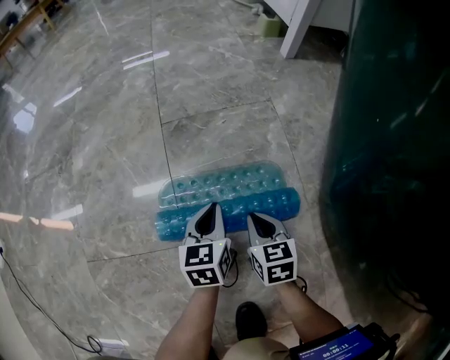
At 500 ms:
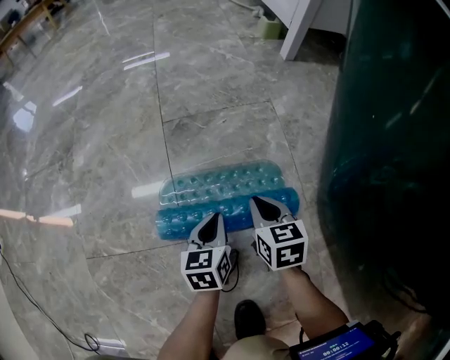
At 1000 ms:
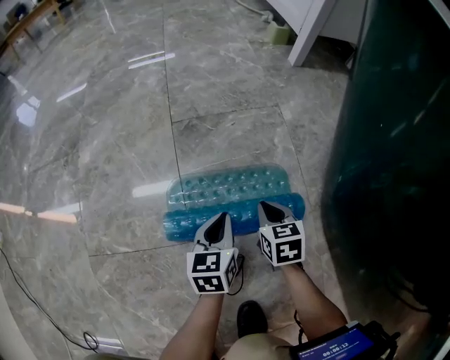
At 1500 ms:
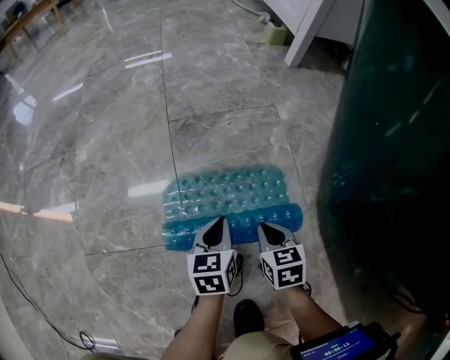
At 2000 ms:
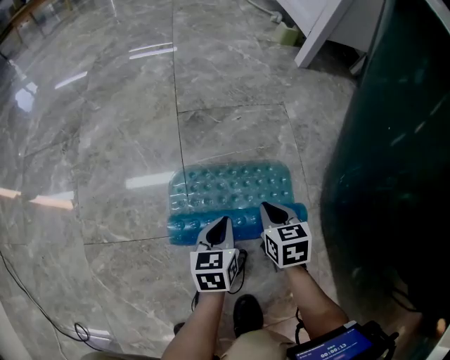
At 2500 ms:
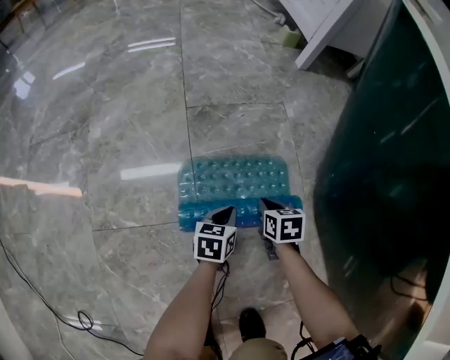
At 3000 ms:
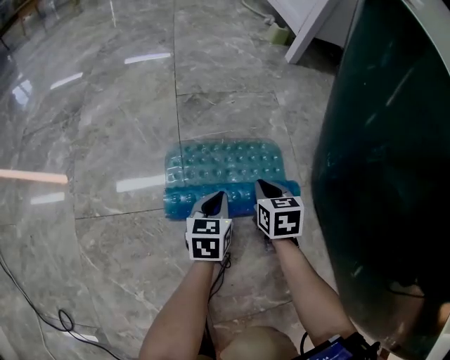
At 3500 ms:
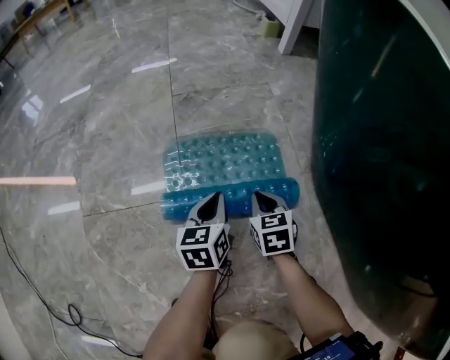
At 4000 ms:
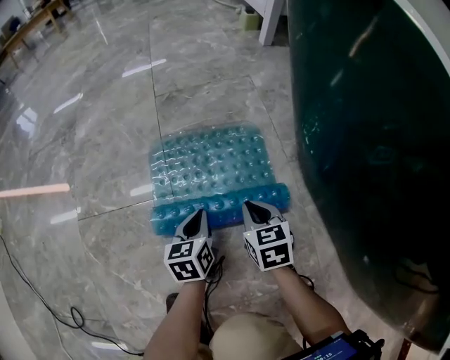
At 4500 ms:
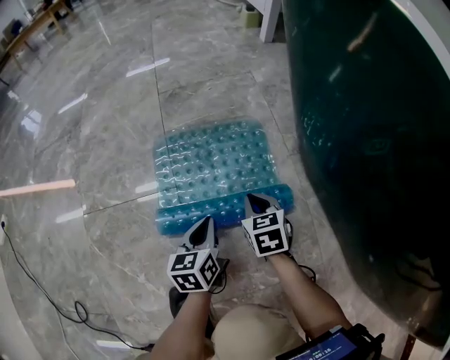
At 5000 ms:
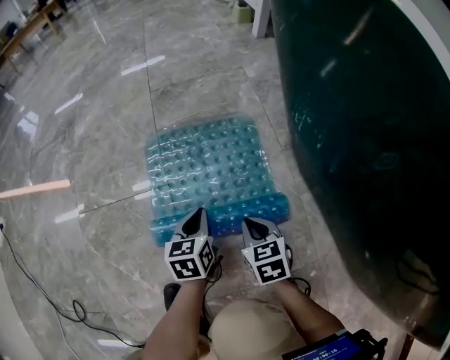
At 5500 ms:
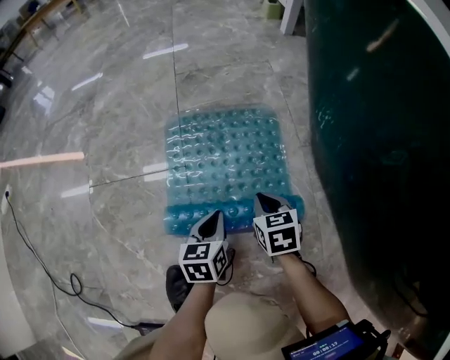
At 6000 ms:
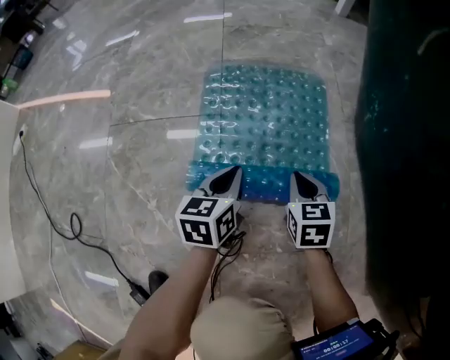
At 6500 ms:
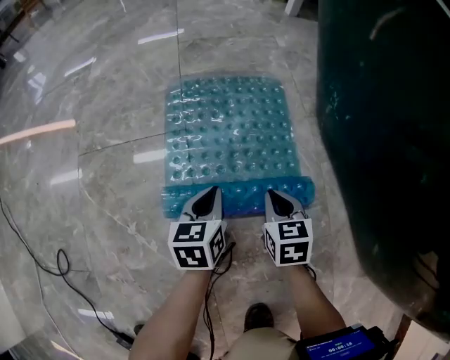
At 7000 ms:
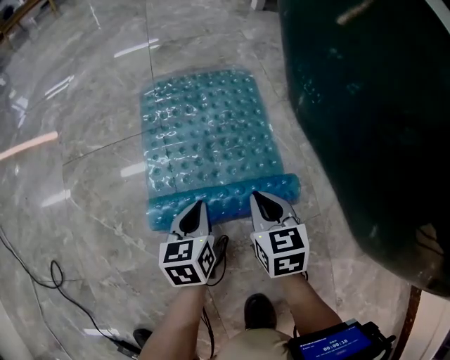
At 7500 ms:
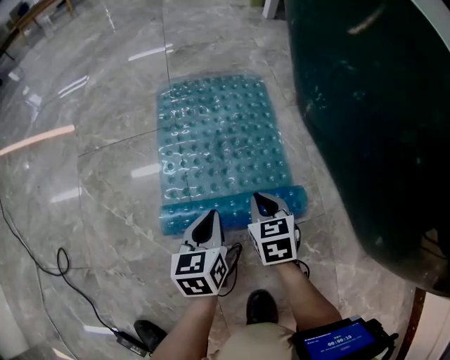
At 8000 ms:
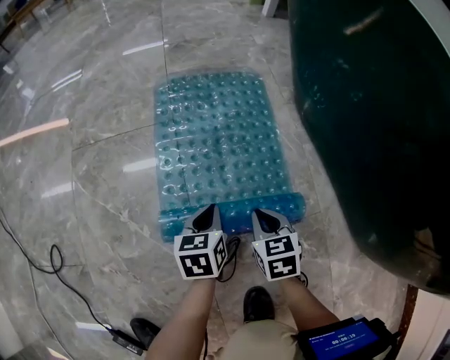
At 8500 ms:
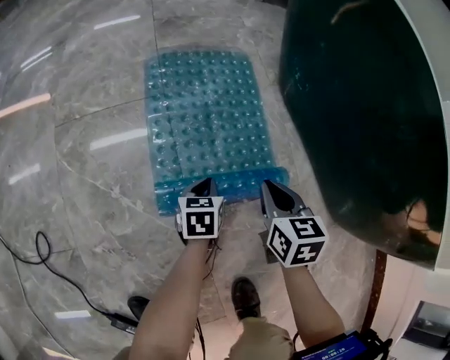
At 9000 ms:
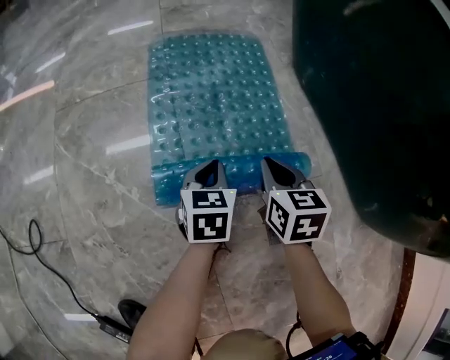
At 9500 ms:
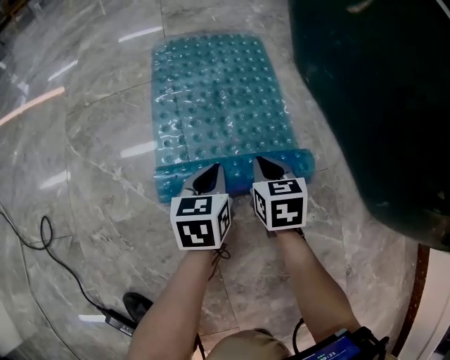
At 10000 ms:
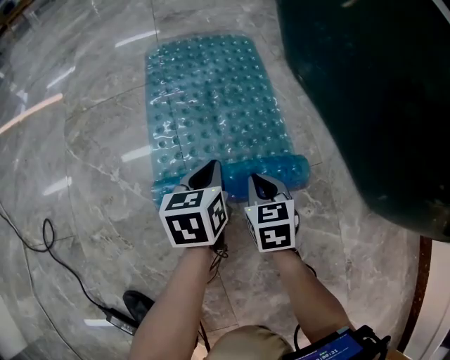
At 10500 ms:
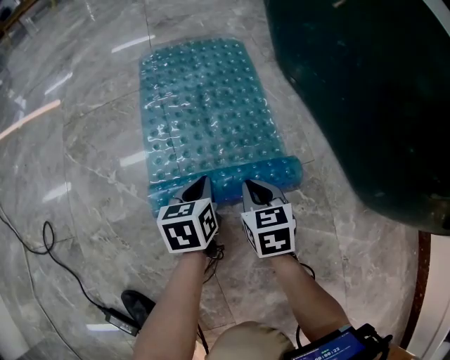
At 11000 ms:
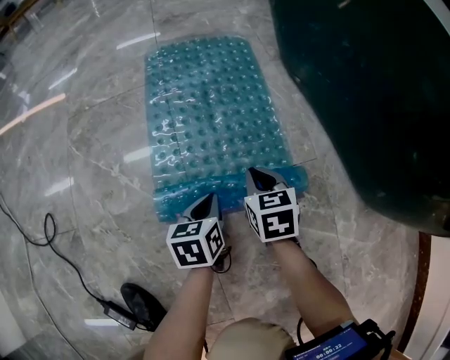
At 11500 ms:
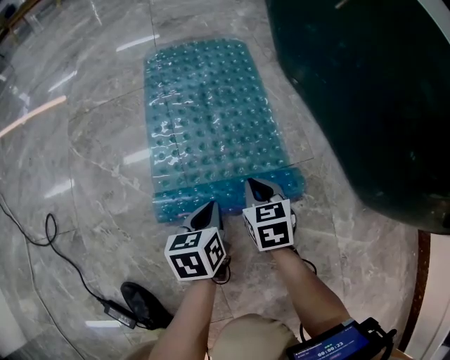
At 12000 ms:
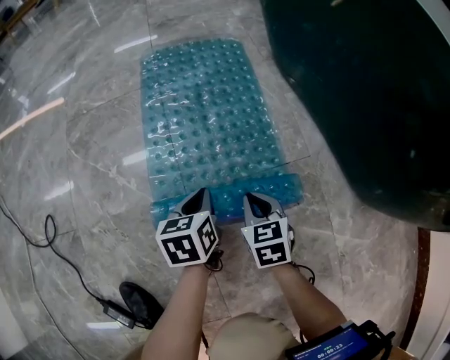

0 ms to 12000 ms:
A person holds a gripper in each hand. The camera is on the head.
0 ms to 2000 ms: The left gripper is displaced backward by roughly 5 cm.
2000 ms to 4000 ms: Both grippers move backward, roughly 15 cm.
4000 ms to 6000 ms: The grippers both shift backward by some 10 cm.
6000 ms to 8000 ms: Both grippers travel together backward, roughly 15 cm.
8000 ms to 10000 ms: The left gripper moves about 5 cm, while the right gripper shifts approximately 5 cm backward, and travels upward and back again, roughly 10 cm each way.
10000 ms to 12000 ms: The grippers both shift backward by roughly 5 cm.

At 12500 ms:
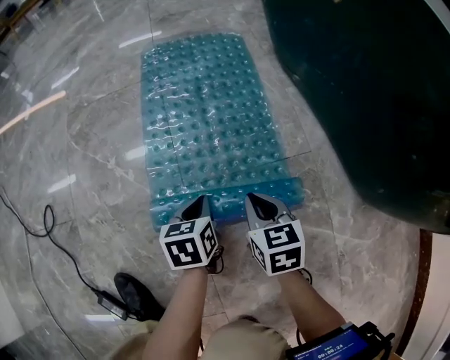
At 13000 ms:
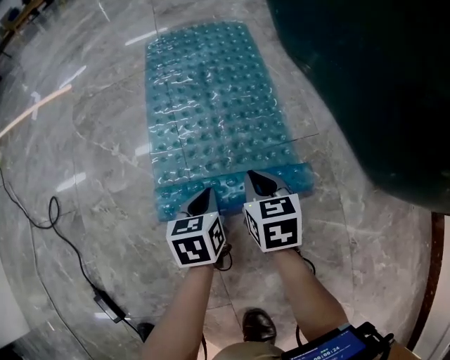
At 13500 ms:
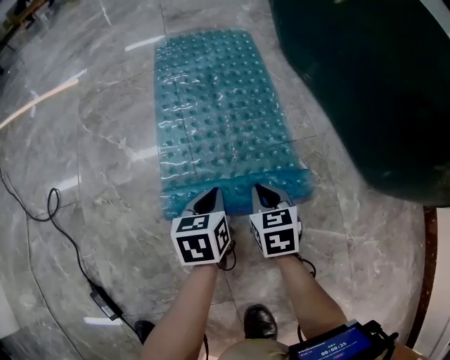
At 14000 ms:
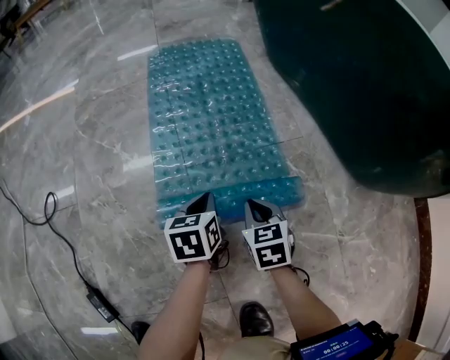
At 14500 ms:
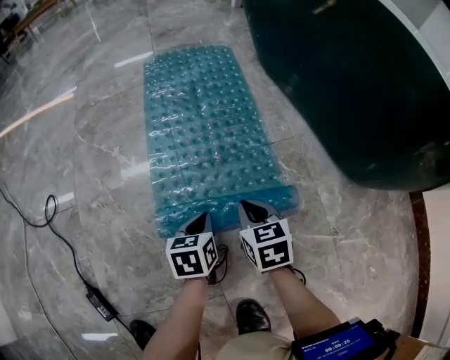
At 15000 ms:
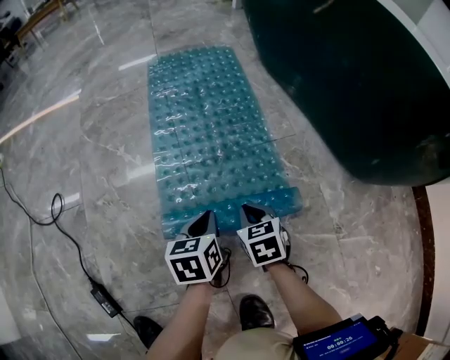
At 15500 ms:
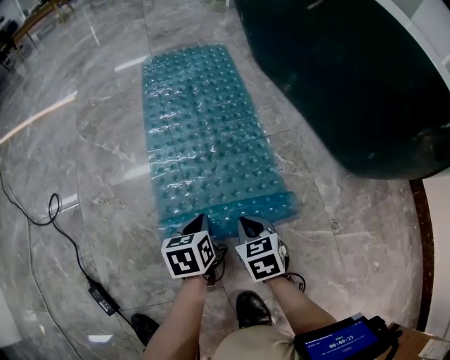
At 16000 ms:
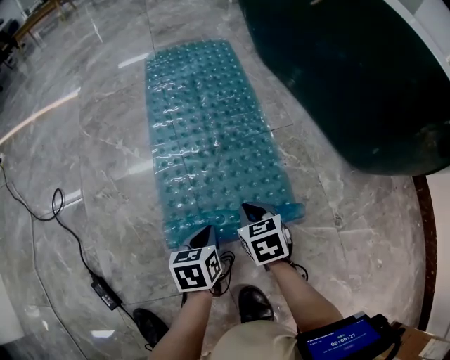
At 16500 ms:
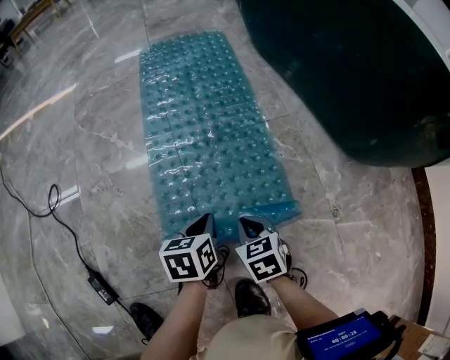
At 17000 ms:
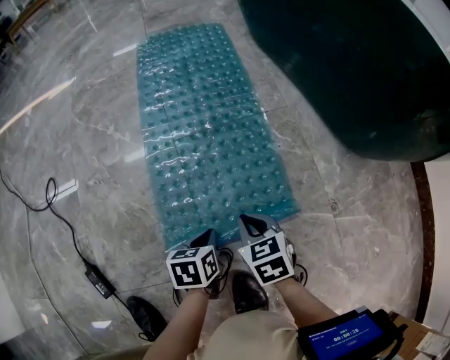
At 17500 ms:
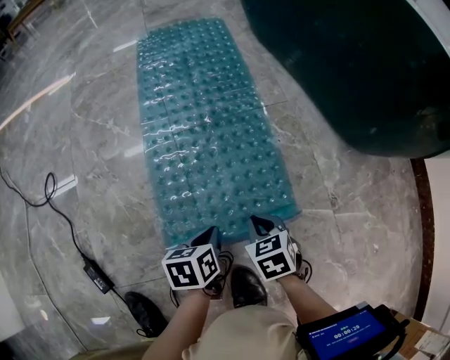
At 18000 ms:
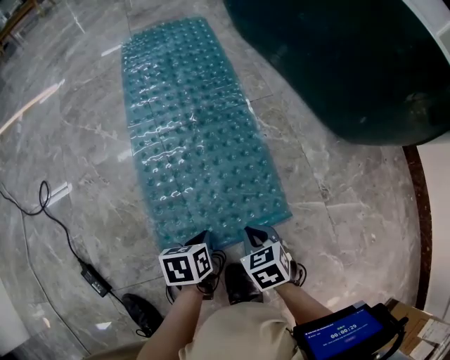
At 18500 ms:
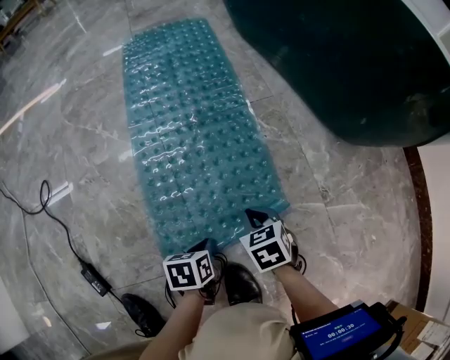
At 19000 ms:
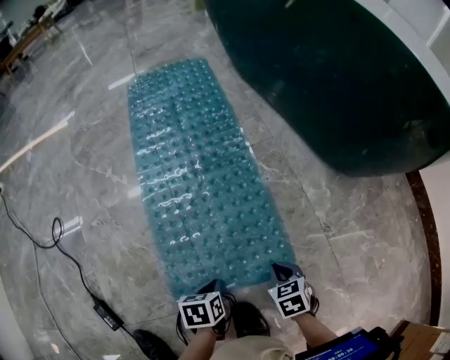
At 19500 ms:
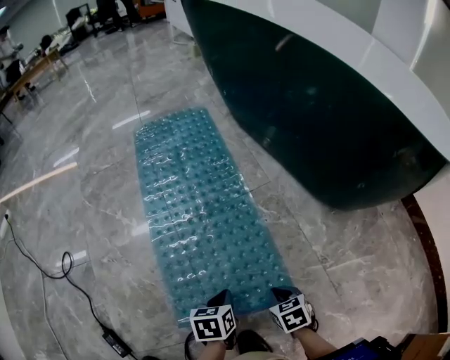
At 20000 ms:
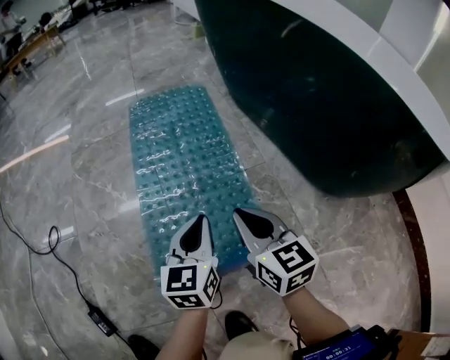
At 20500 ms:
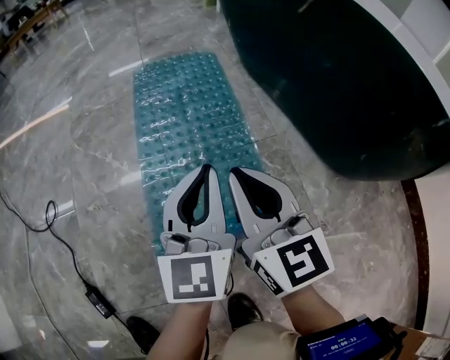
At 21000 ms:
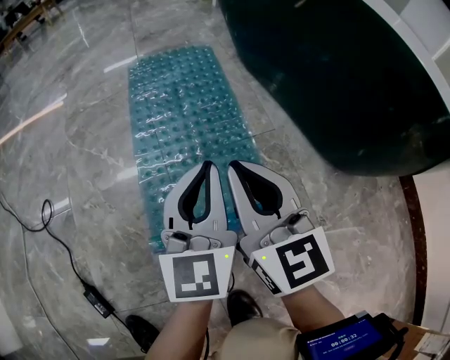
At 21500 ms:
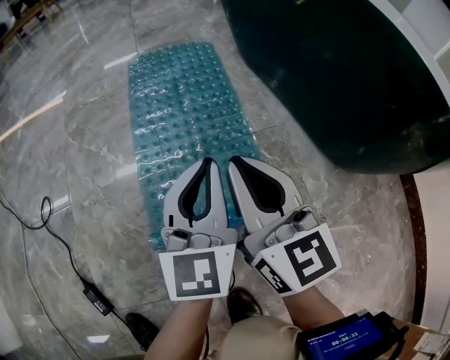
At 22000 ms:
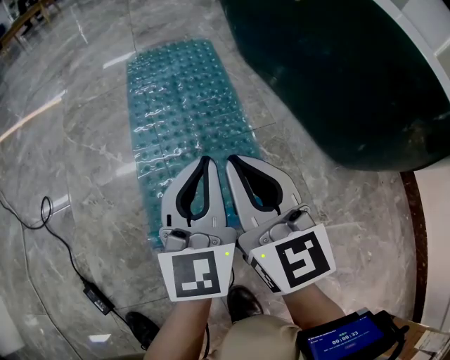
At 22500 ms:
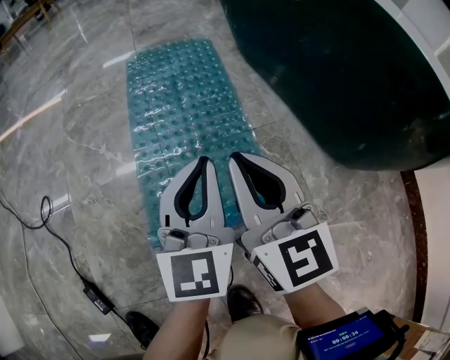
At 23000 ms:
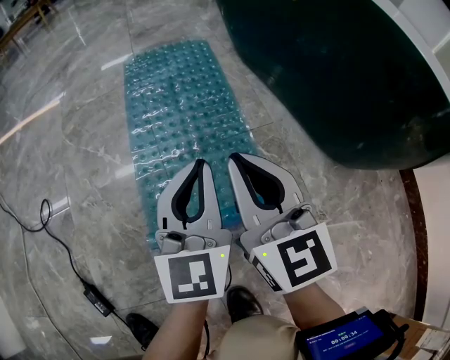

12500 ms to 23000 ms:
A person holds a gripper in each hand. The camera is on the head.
12500 ms to 14500 ms: Both grippers travel together backward, some 10 cm.
14500 ms to 16500 ms: The left gripper heads backward, covering some 5 cm. Meanwhile the right gripper heads backward, covering approximately 10 cm.
16500 ms to 19000 ms: The left gripper goes roughly 15 cm backward and downward. Meanwhile the right gripper moves to the right and backward, about 15 cm.
19000 ms to 21000 ms: The right gripper travels upward, forward and to the left by approximately 40 cm, and tilts its fingers approximately 60 degrees upward. Meanwhile the left gripper shifts approximately 40 cm upward and forward, and tips its fingers upward by about 60 degrees.
21000 ms to 23000 ms: The grippers stay close to where they were, moving slightly.

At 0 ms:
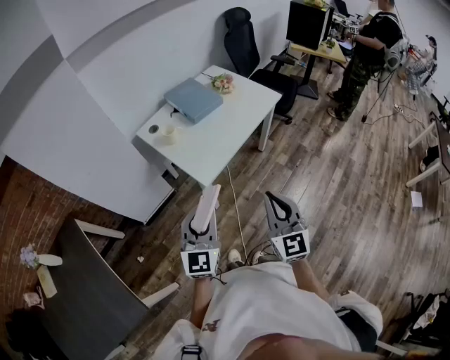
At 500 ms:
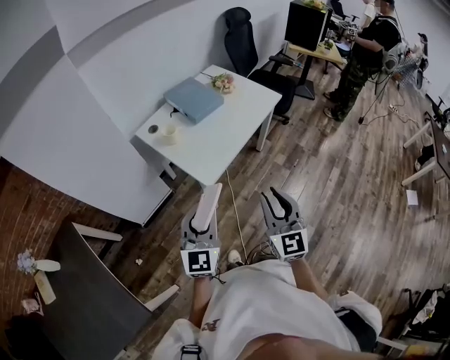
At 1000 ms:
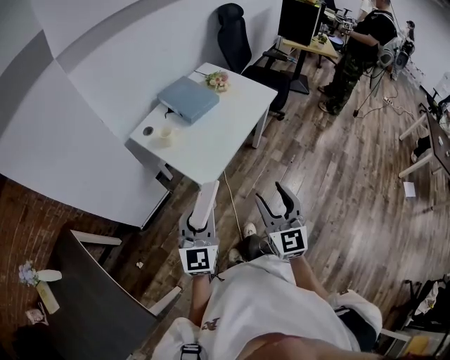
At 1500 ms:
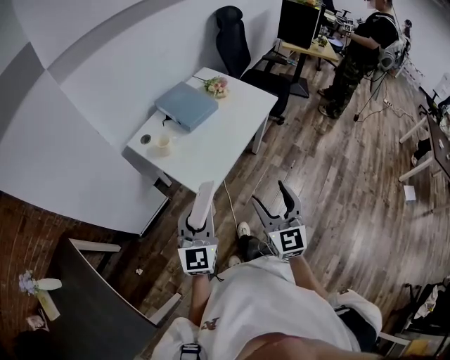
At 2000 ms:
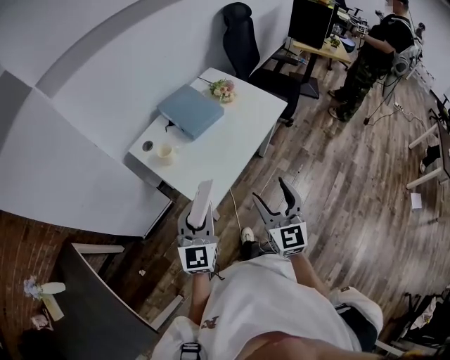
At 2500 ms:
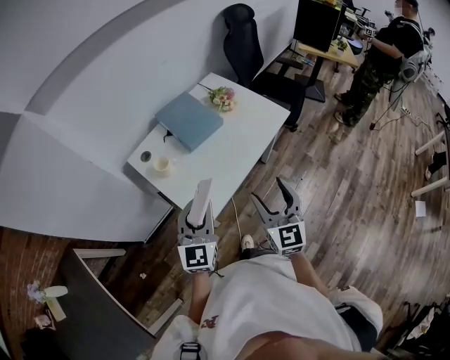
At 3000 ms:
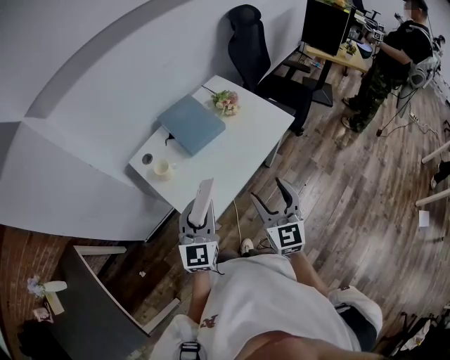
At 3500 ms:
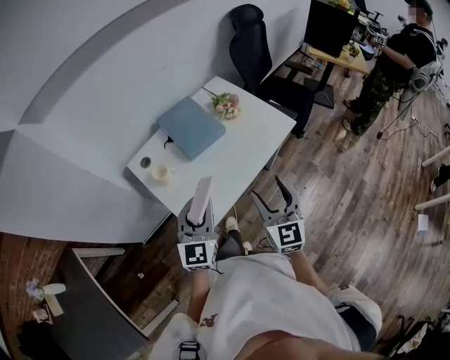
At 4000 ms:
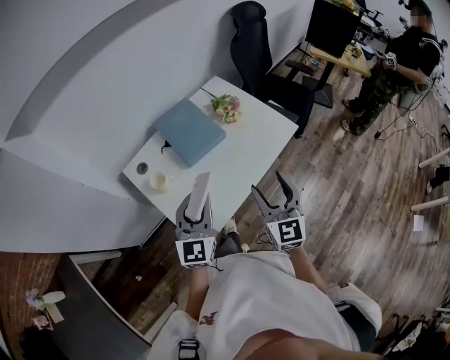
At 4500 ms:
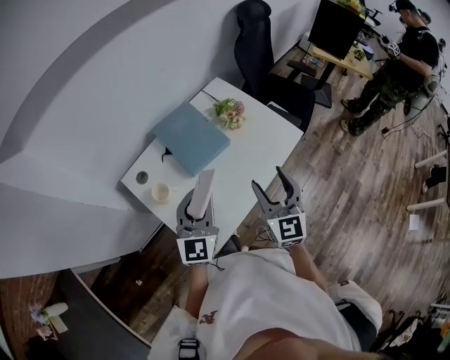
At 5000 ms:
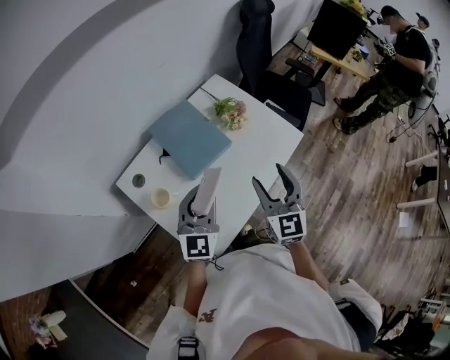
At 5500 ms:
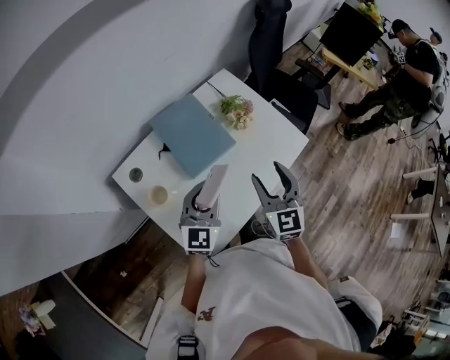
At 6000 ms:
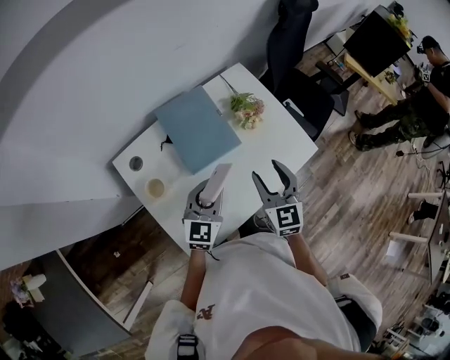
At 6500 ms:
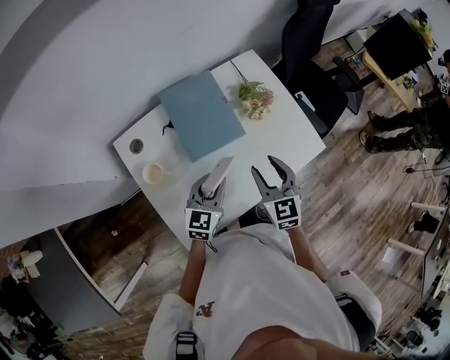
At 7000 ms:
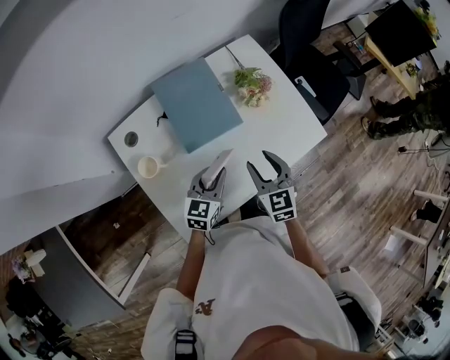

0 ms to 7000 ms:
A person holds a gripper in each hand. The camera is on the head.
0 ms to 2000 ms: Both grippers travel together forward, about 20 cm. The right gripper opens up.
2000 ms to 3500 ms: The two grippers go roughly 15 cm forward and to the right.
3500 ms to 5000 ms: The two grippers go about 20 cm forward.
5000 ms to 7000 ms: The left gripper travels downward by roughly 20 cm, and turns by approximately 30 degrees; the right gripper goes approximately 20 cm downward and forward, and swivels roughly 30 degrees.
